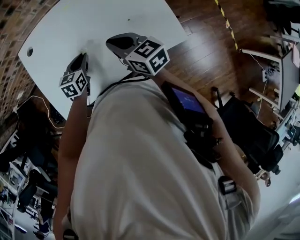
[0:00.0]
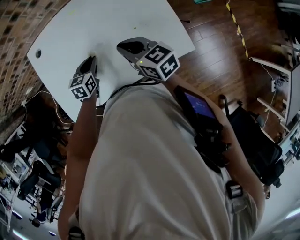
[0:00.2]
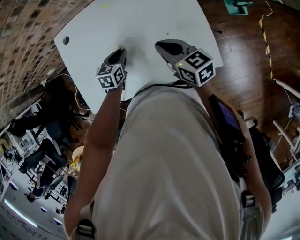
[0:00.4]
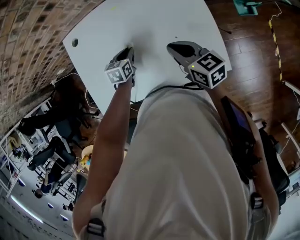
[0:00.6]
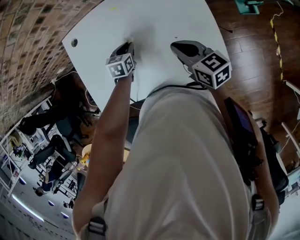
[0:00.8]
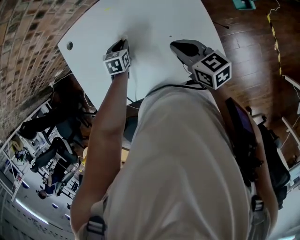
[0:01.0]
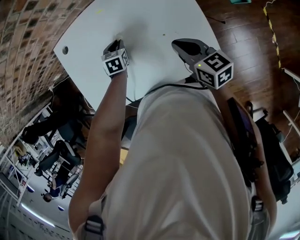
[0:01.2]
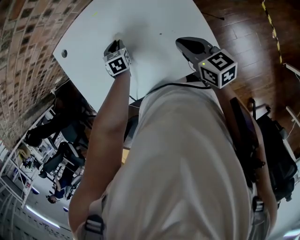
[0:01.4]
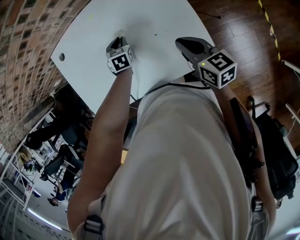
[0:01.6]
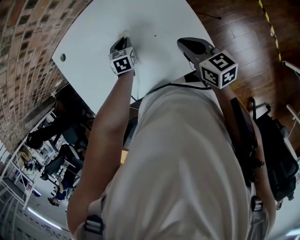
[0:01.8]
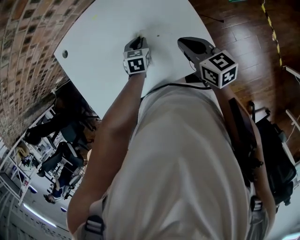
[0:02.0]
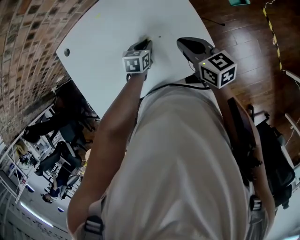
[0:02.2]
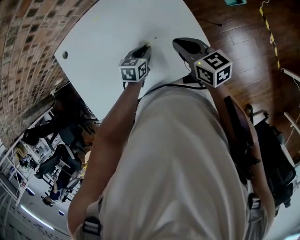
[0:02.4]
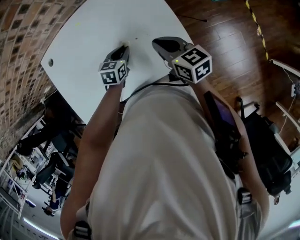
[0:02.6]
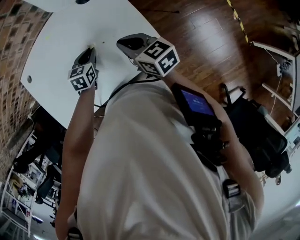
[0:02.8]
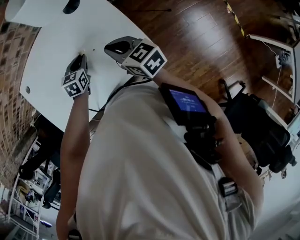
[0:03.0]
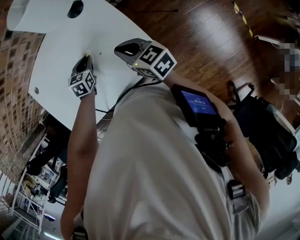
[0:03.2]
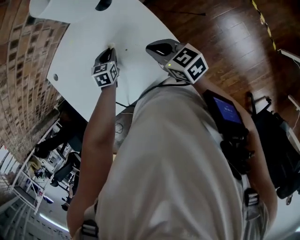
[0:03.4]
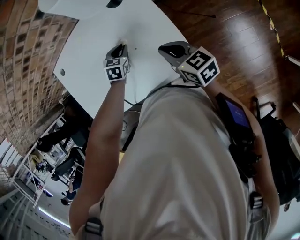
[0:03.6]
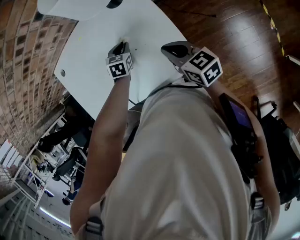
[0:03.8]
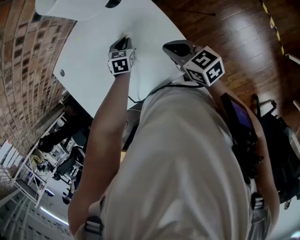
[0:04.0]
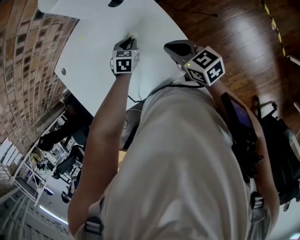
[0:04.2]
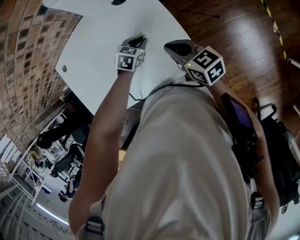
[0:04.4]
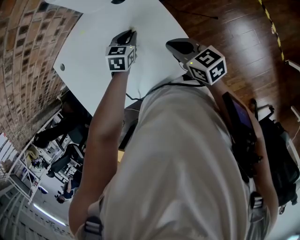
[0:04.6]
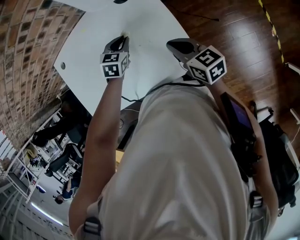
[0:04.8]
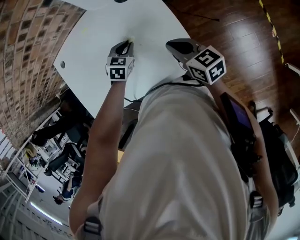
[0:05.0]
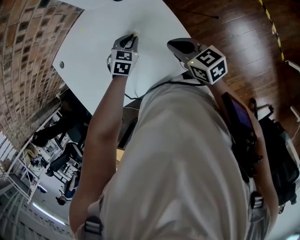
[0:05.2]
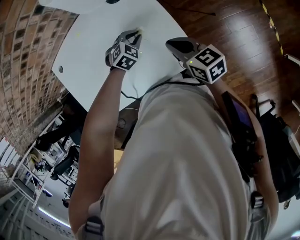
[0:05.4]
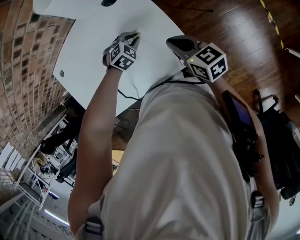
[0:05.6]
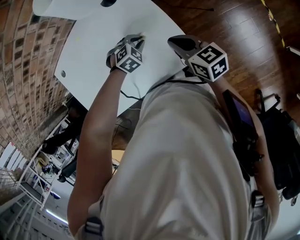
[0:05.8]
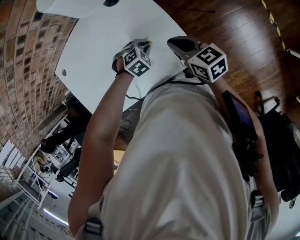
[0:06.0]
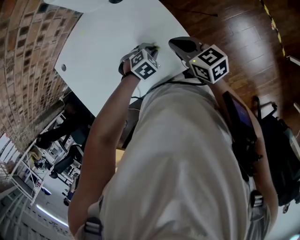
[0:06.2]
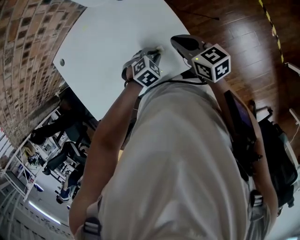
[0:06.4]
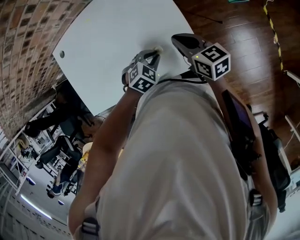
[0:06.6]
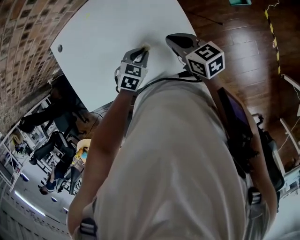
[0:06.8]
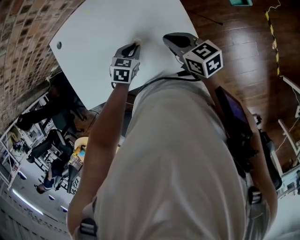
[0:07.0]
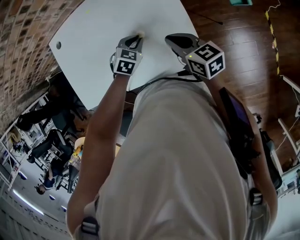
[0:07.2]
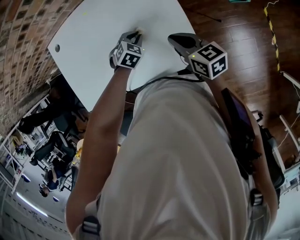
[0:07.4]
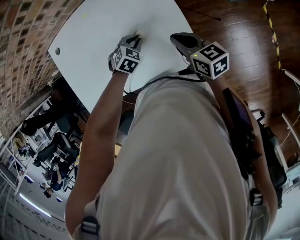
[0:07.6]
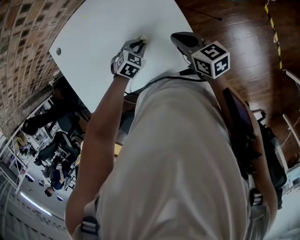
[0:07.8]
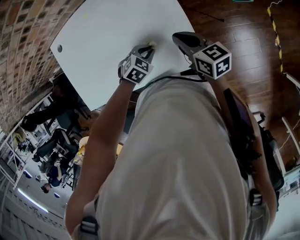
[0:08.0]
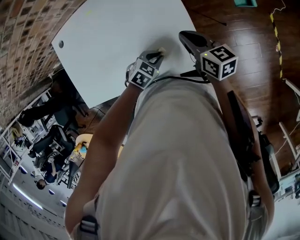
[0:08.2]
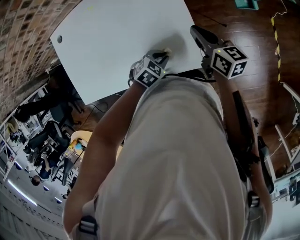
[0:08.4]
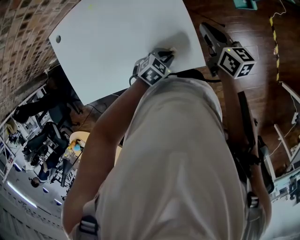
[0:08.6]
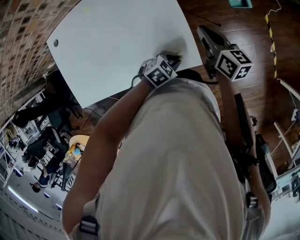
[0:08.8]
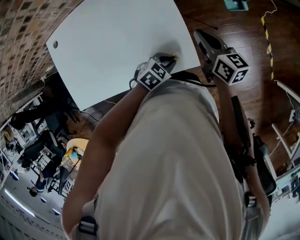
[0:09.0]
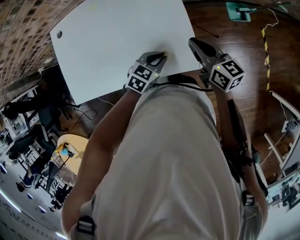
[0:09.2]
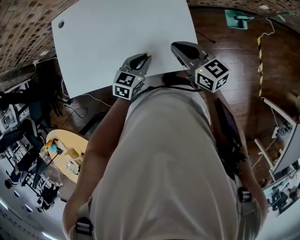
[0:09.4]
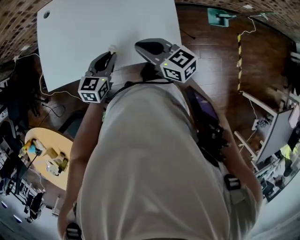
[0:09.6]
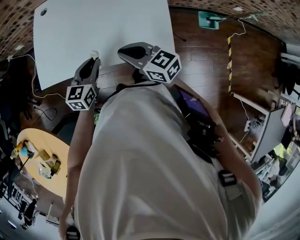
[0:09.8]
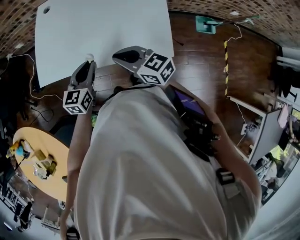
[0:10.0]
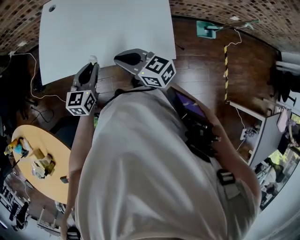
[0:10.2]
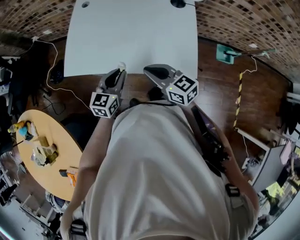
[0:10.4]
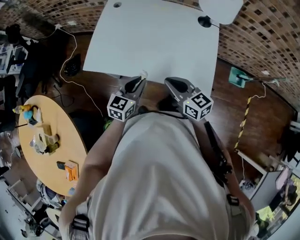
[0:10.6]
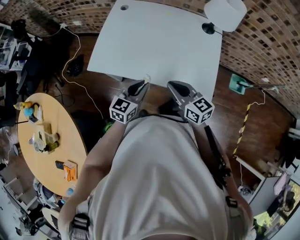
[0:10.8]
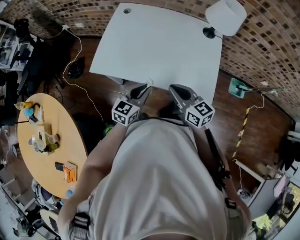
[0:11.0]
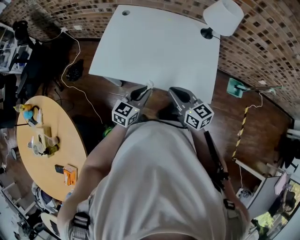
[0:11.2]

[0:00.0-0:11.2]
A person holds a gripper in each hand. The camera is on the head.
0.0 to 1.6 s: The left gripper is displaced to the right and forward by approximately 15 cm, and rotates approximately 20 degrees; the right gripper goes about 20 cm to the right.
1.6 to 3.2 s: The left gripper goes about 10 cm to the right.
4.8 to 6.4 s: The left gripper changes place by roughly 15 cm, and swivels about 40 degrees.
8.0 to 9.6 s: The right gripper moves about 20 cm, and changes its angle by roughly 30 degrees; the left gripper shifts by roughly 20 cm, and tips its fingers upward by approximately 40 degrees.
9.6 to 11.2 s: The left gripper heads to the left, backward and upward, covering roughly 15 cm. The right gripper moves to the left and backward, approximately 15 cm.

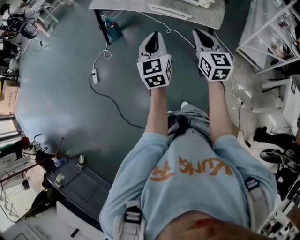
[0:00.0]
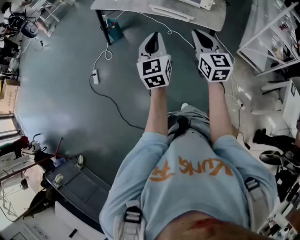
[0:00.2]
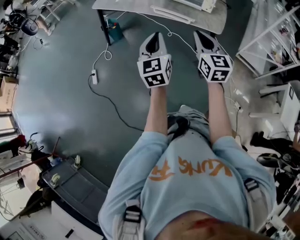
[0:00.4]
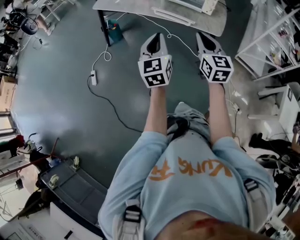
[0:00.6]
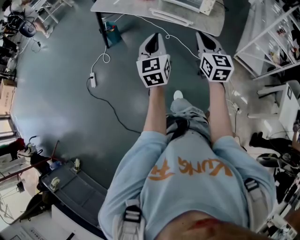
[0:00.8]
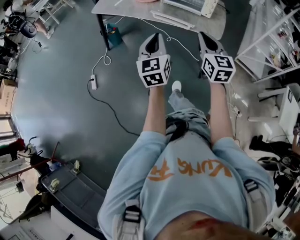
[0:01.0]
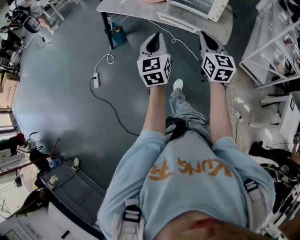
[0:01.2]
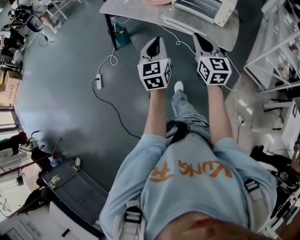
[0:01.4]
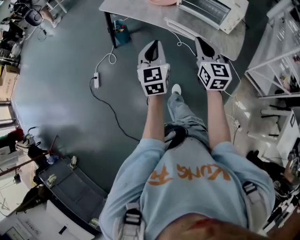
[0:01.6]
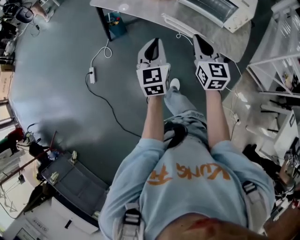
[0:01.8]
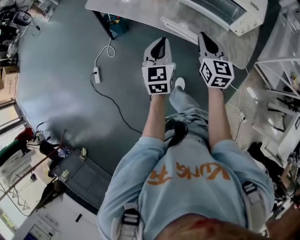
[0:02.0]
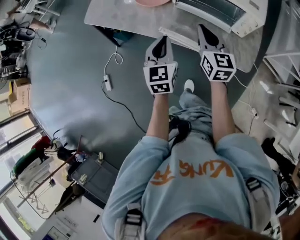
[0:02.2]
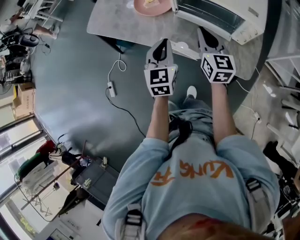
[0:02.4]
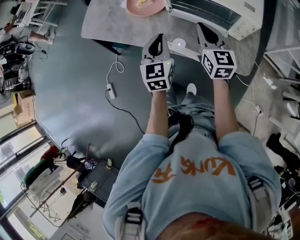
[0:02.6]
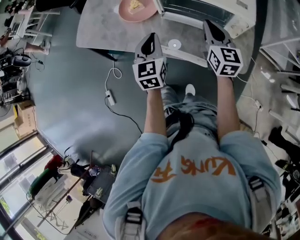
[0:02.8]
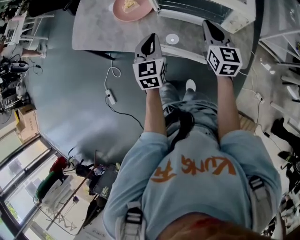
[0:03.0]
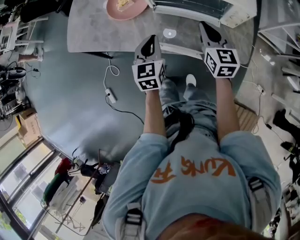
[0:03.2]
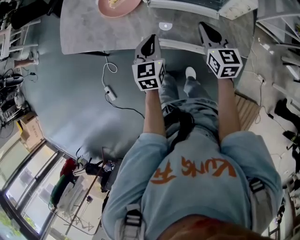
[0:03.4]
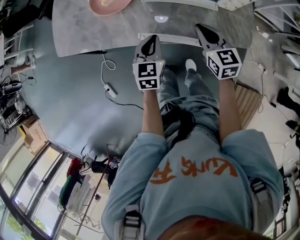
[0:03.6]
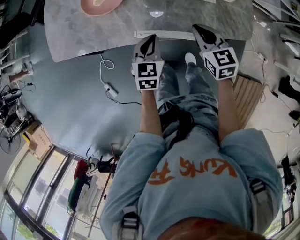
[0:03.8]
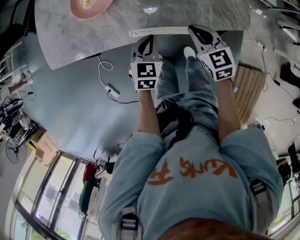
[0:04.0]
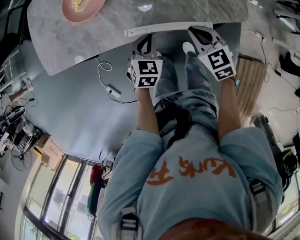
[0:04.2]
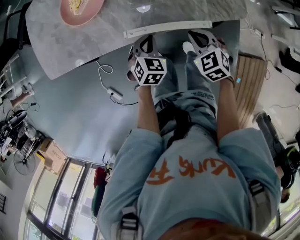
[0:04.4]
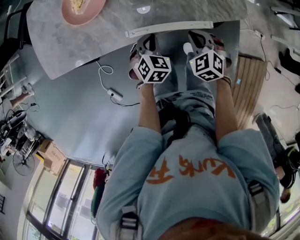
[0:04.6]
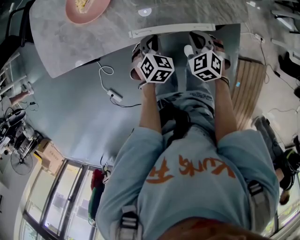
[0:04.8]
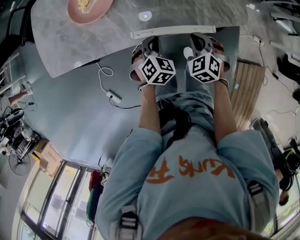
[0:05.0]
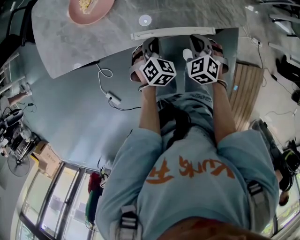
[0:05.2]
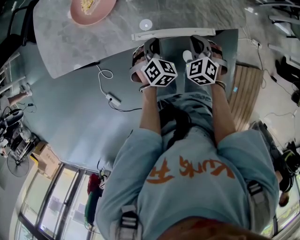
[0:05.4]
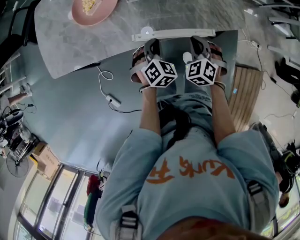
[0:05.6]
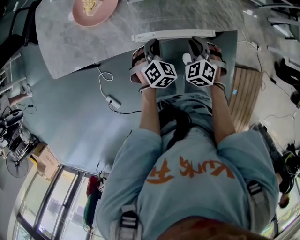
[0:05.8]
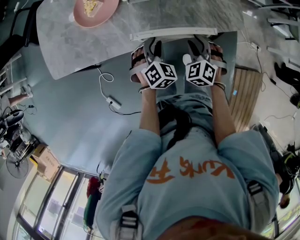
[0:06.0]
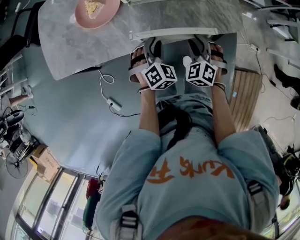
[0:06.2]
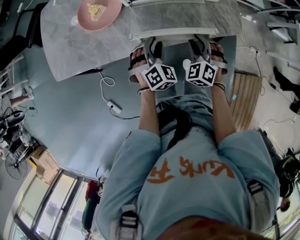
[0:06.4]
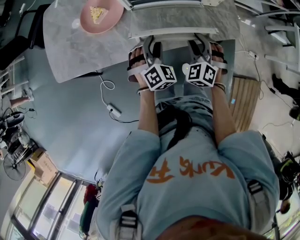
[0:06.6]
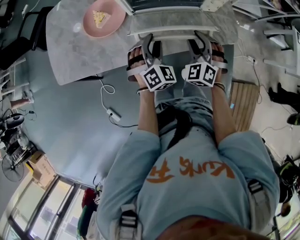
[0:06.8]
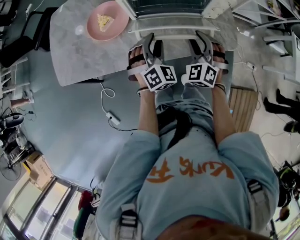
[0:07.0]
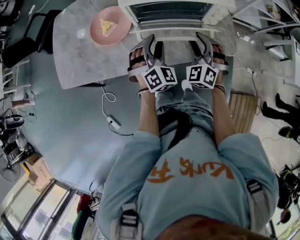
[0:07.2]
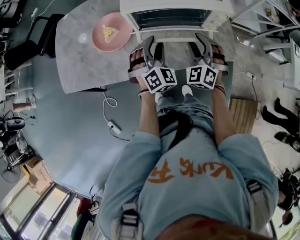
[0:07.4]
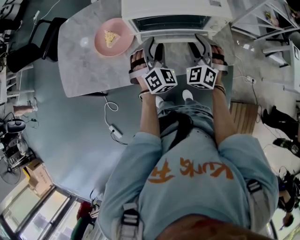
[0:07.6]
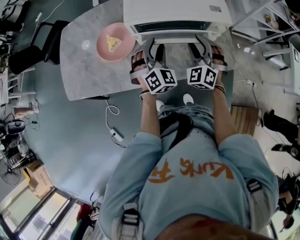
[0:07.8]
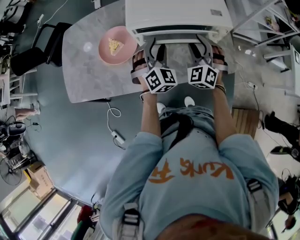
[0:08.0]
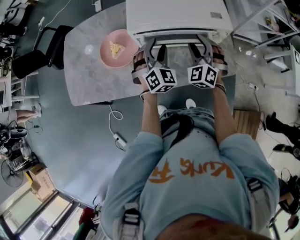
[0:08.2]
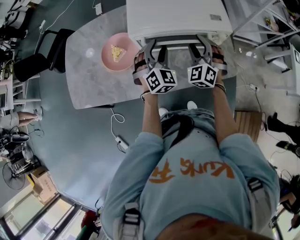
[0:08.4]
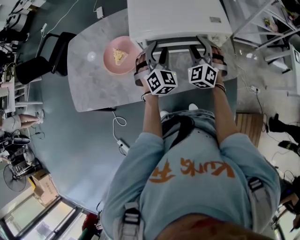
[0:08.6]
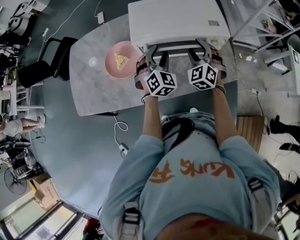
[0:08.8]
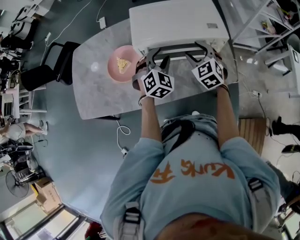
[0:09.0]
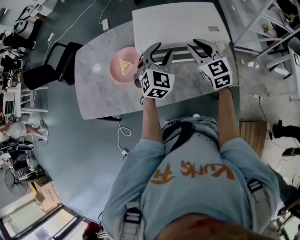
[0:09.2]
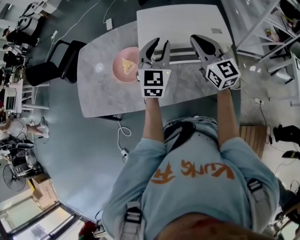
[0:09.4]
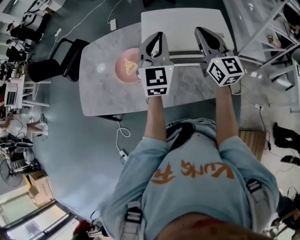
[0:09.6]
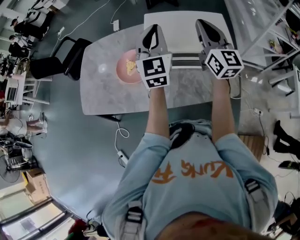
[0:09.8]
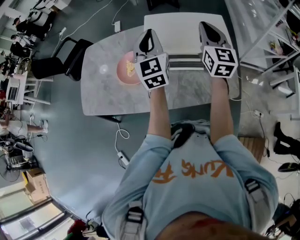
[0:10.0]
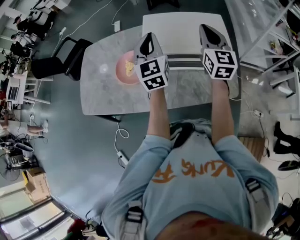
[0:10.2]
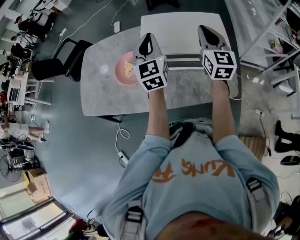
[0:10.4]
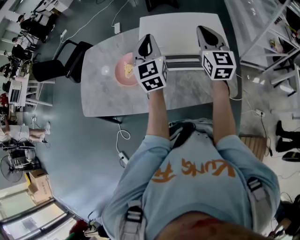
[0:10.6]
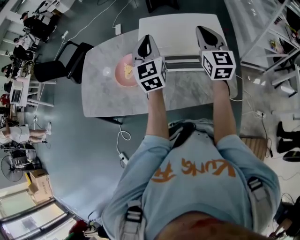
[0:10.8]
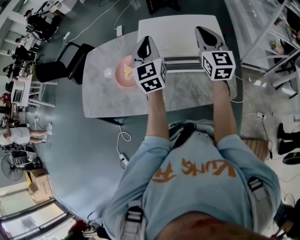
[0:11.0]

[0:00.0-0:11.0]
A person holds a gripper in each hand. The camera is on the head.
0.0 to 1.6 s: Both grippers move forward, some 15 cm.
1.6 to 3.2 s: The left gripper goes roughly 35 cm forward, and swivels about 30 degrees. Meanwhile the right gripper goes roughly 35 cm forward and to the right, and turns by about 20 degrees.
3.2 to 4.8 s: The left gripper travels downward by some 15 cm, and tilts its fingers some 30 degrees downward; the right gripper shifts about 20 cm downward and backward, and points its fingers some 30 degrees further downward.
4.8 to 6.2 s: The right gripper opens up, while the left gripper is displaced upward by approximately 5 cm, and opens its fingers.
6.2 to 7.8 s: Both grippers move forward and upward, roughly 20 cm. The right gripper turns by about 20 degrees, while the left gripper turns by some 20 degrees.
7.8 to 9.4 s: Both grippers travel together upward, approximately 15 cm. The right gripper rotates around the line of its fingers by approximately 50 degrees, clockwise from behind, and closes its fingers. The left gripper turns by some 40 degrees.
9.4 to 11.0 s: The right gripper moves to the right, approximately 5 cm. The left gripper changes its angle by approximately 20 degrees, and closes.

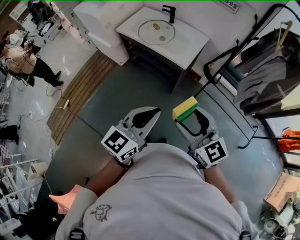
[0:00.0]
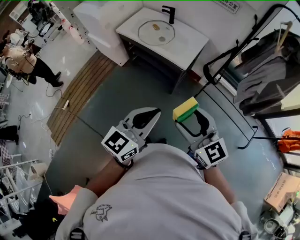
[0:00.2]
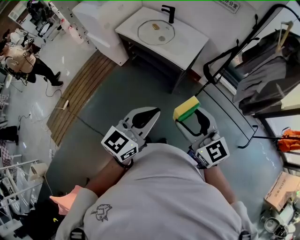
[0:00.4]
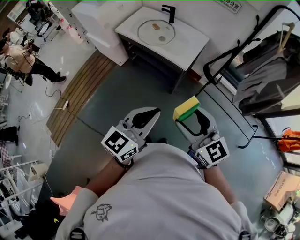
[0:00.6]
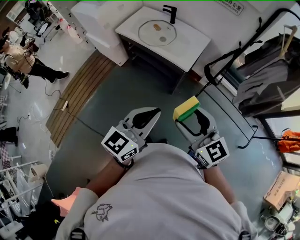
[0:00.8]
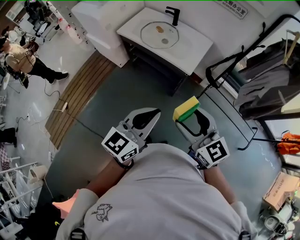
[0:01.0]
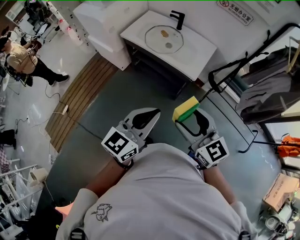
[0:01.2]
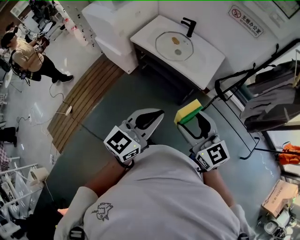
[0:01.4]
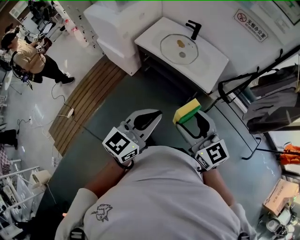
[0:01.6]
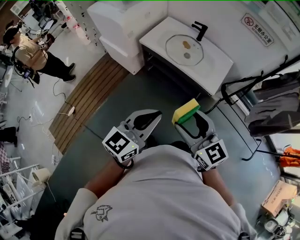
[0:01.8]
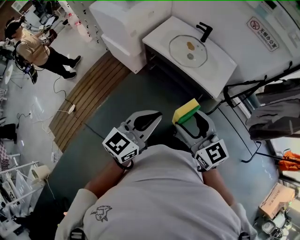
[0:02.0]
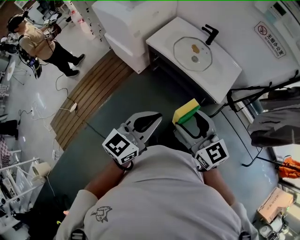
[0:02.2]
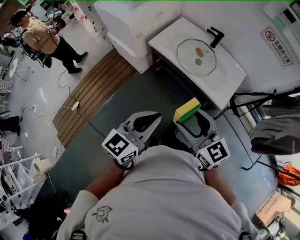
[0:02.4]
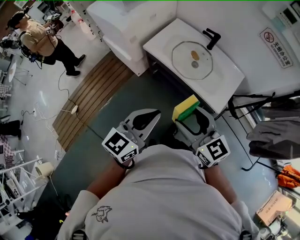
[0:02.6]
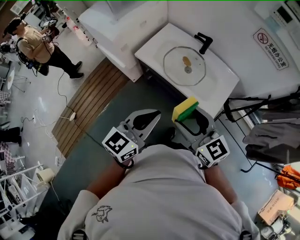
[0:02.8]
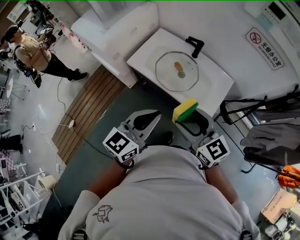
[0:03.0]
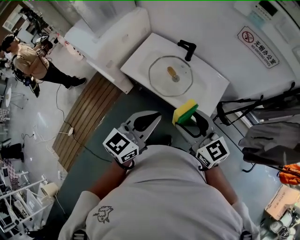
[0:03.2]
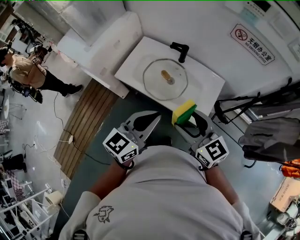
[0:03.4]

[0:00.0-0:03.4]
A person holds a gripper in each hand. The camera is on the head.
0.0 to 1.6 s: Both grippers move to the left and forward, about 25 cm.
1.6 to 3.4 s: The two grippers go approximately 30 cm forward.
